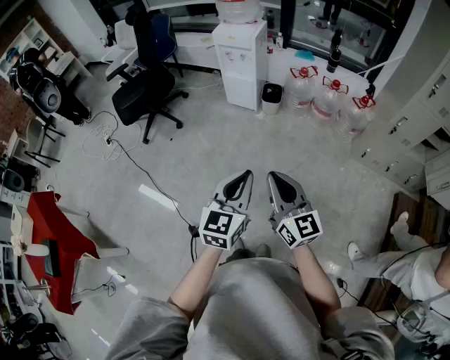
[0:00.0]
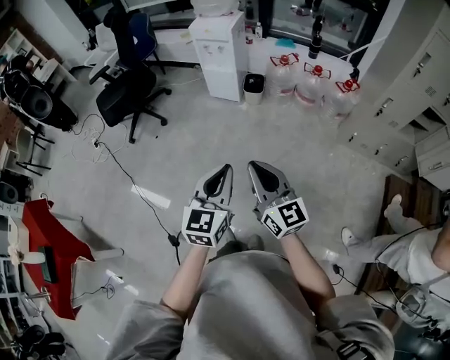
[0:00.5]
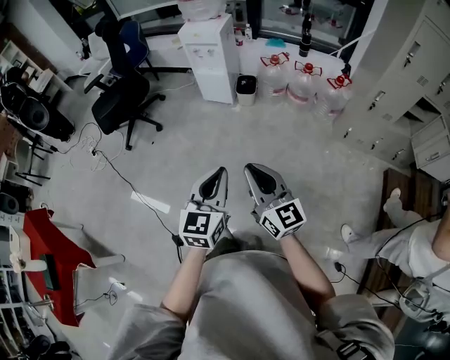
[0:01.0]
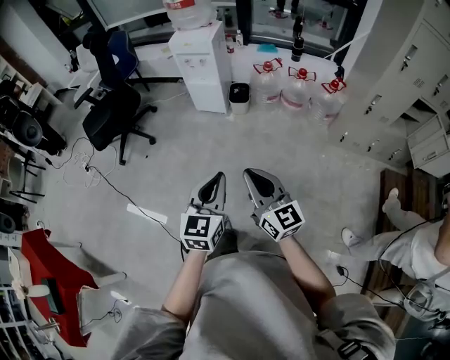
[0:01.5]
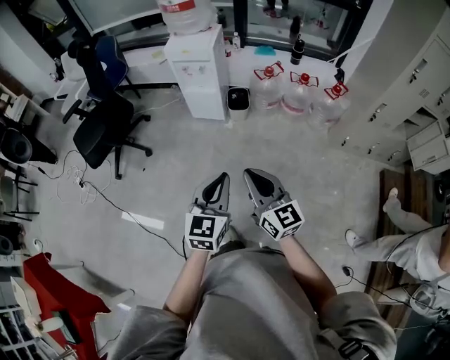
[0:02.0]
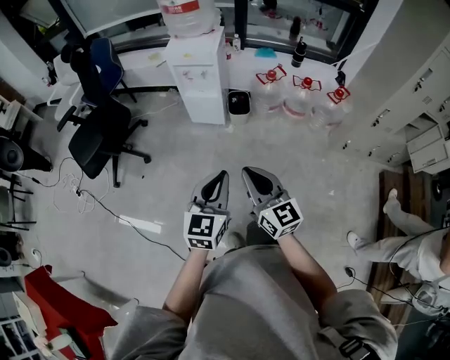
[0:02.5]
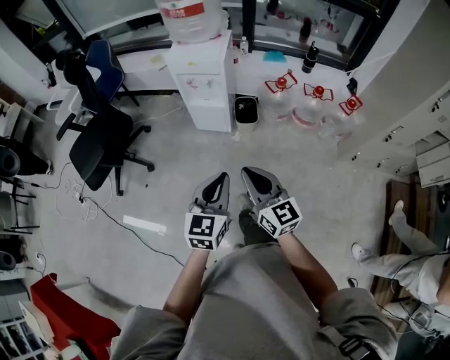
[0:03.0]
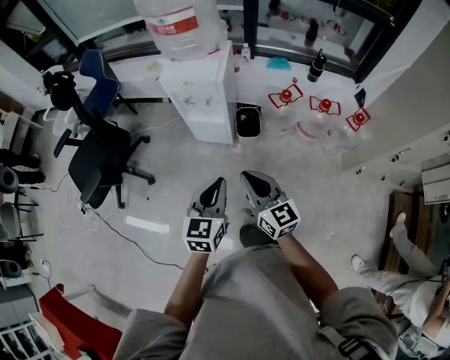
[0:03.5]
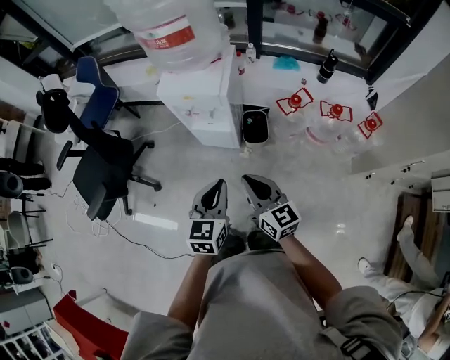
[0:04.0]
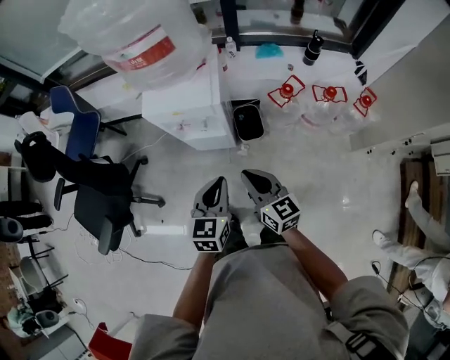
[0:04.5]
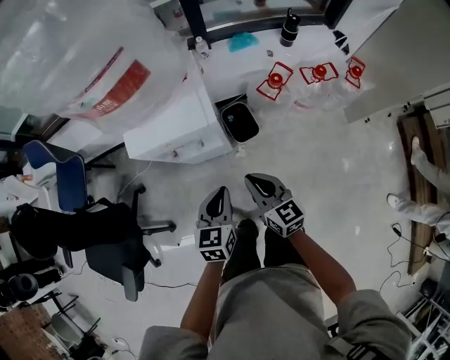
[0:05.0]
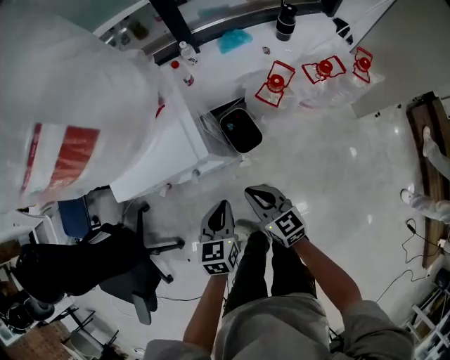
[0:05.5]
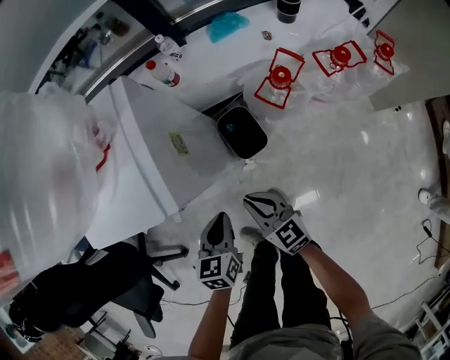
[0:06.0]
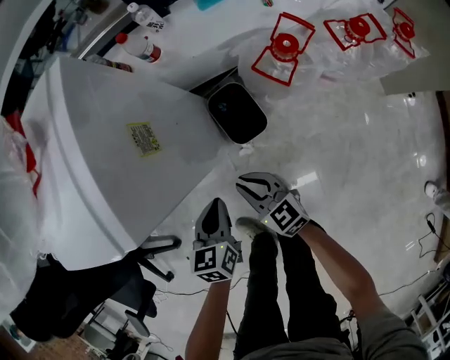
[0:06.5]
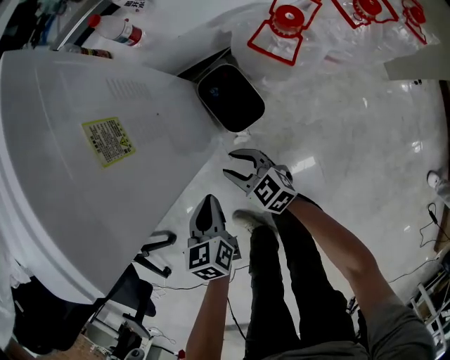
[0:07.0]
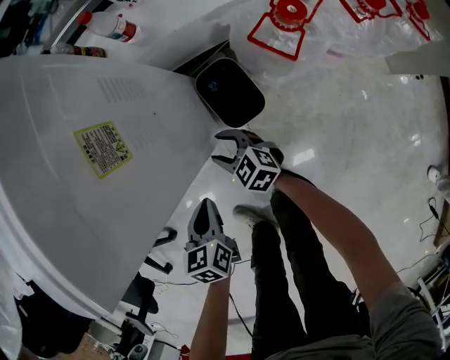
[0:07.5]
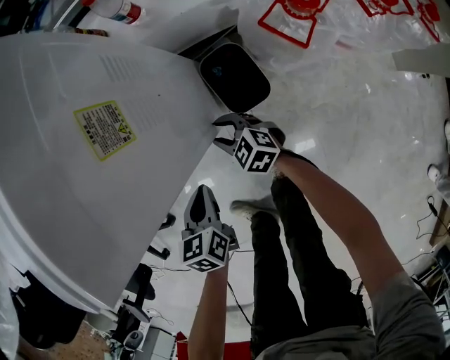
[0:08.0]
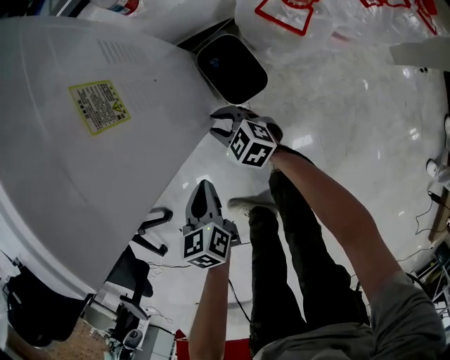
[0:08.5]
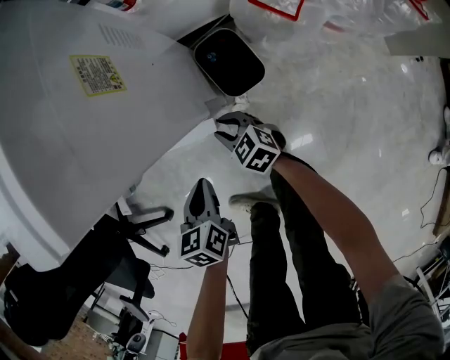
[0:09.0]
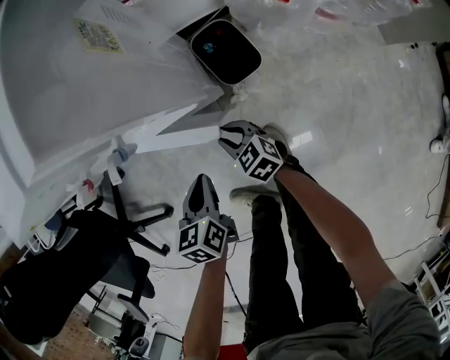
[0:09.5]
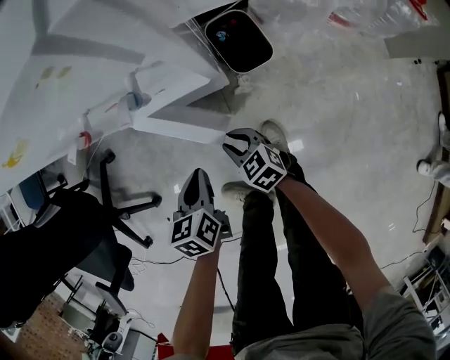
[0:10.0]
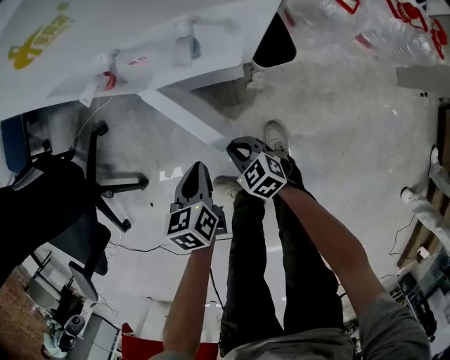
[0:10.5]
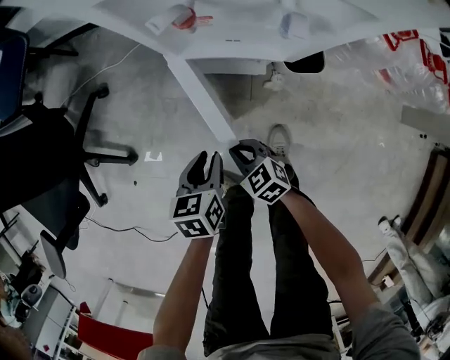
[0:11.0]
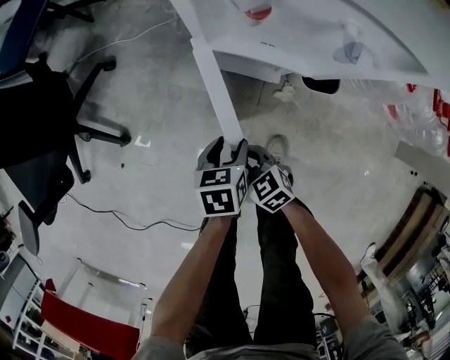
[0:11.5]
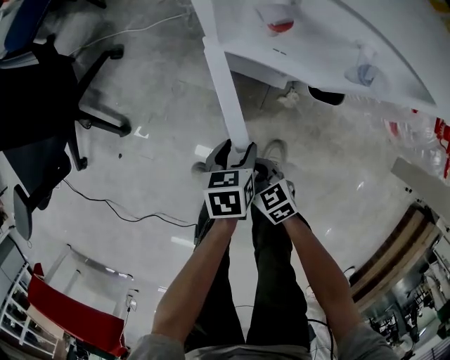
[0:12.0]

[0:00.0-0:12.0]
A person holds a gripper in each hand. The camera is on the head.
0:00.0 to 0:02.0: The grippers both shift forward by roughly 15 cm.
0:02.0 to 0:04.0: Both grippers are carried forward, approximately 40 cm.
0:04.0 to 0:06.0: Both grippers travel together downward and forward, about 40 cm. The left gripper rotates roughly 30 degrees.
0:06.0 to 0:08.0: The right gripper travels downward by roughly 25 cm, swivels about 30 degrees, and opens its fingers. The left gripper shifts roughly 15 cm downward.
0:08.0 to 0:10.0: The right gripper moves backward and to the left, about 20 cm; the left gripper travels to the left and backward by approximately 15 cm.
0:10.0 to 0:12.0: The right gripper shifts approximately 10 cm to the left and backward, swivels roughly 20 degrees, and closes its fingers. The left gripper heads downward, covering approximately 10 cm, changes its angle by roughly 20 degrees, and opens up.

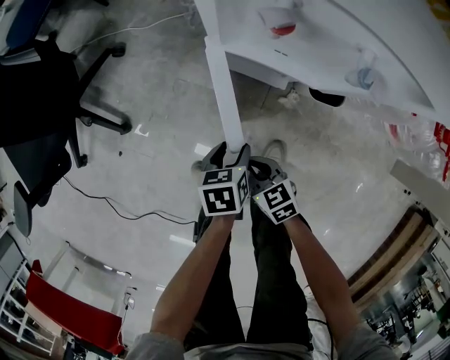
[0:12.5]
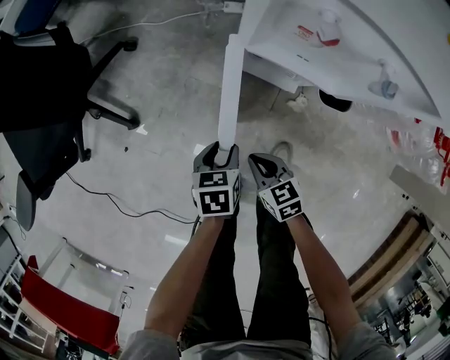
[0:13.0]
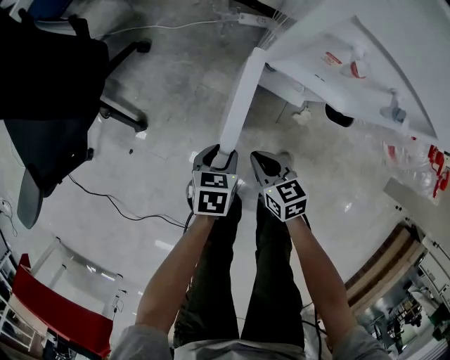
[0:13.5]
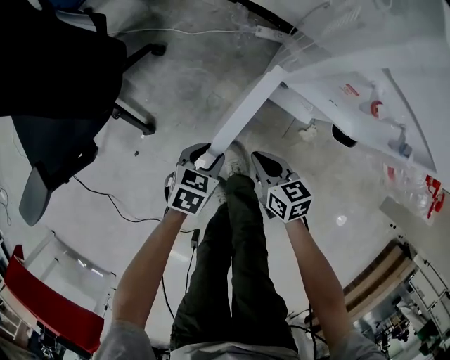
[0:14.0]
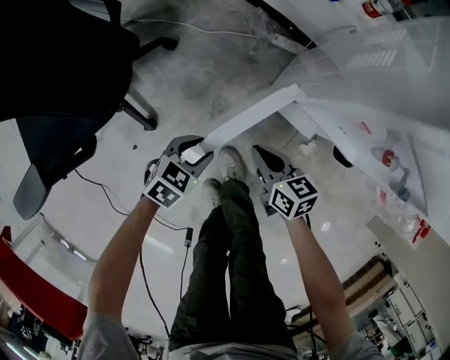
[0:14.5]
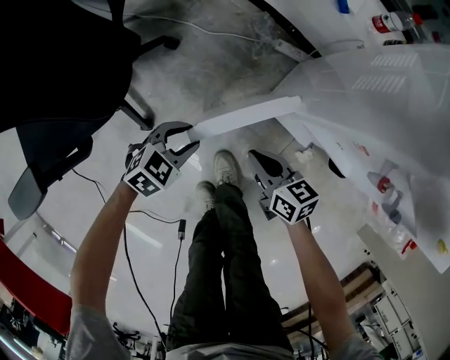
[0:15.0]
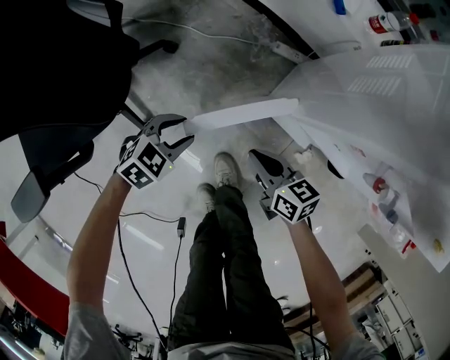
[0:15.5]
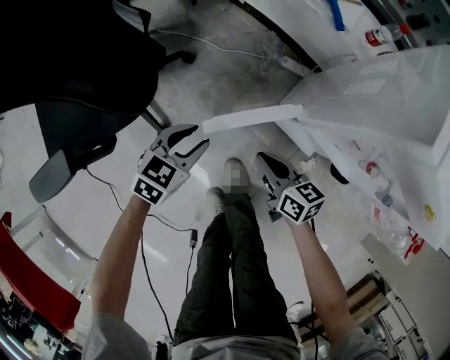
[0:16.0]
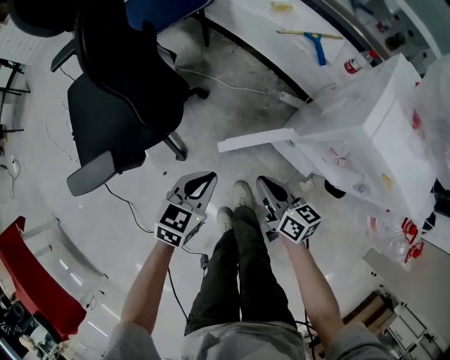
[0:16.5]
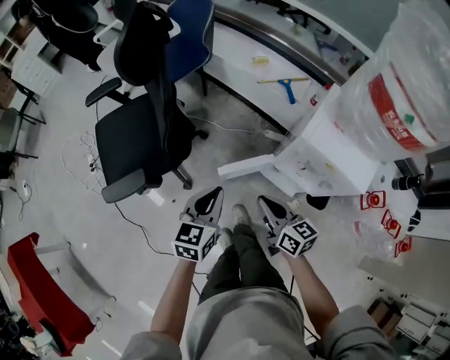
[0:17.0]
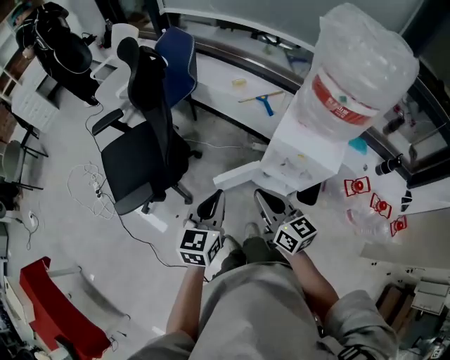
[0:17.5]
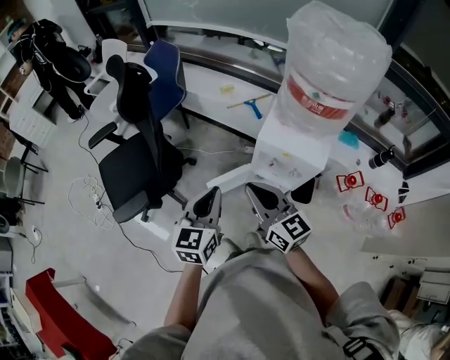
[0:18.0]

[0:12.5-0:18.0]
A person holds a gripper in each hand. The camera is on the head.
0:12.5 to 0:14.5: The left gripper goes about 20 cm to the left, and changes its angle by about 40 degrees. Meanwhile the right gripper travels forward and to the left by some 20 cm.
0:14.5 to 0:16.0: The right gripper heads upward, covering roughly 5 cm; the left gripper heads upward, forward and to the left, covering some 15 cm.
0:16.0 to 0:18.0: The two grippers go about 60 cm upward. The right gripper rotates about 40 degrees. The left gripper turns by roughly 40 degrees, and closes.

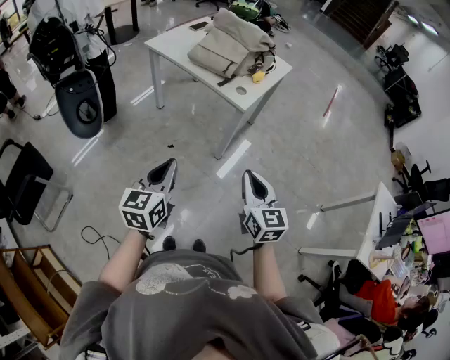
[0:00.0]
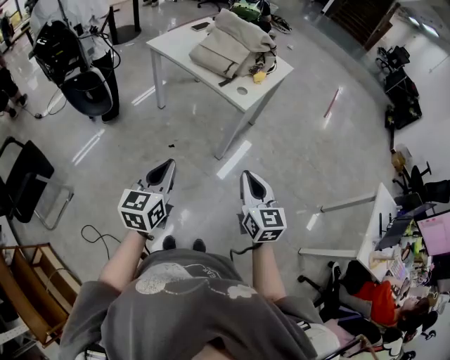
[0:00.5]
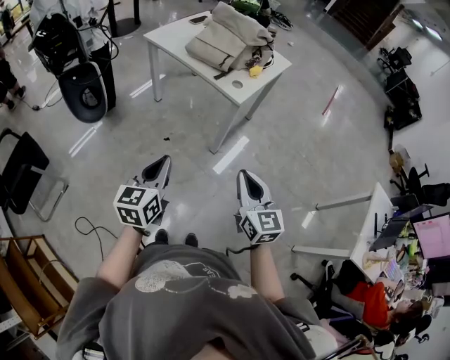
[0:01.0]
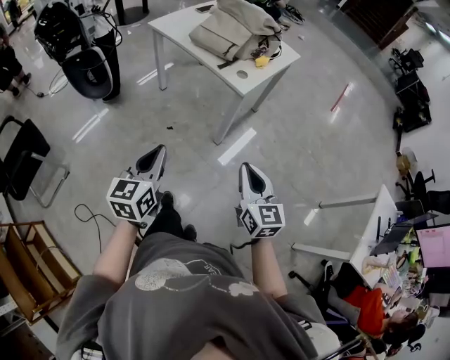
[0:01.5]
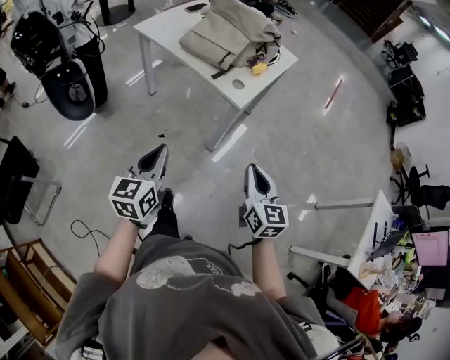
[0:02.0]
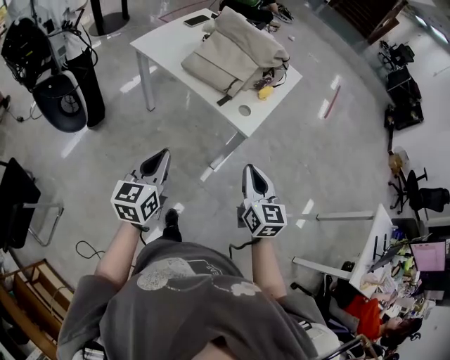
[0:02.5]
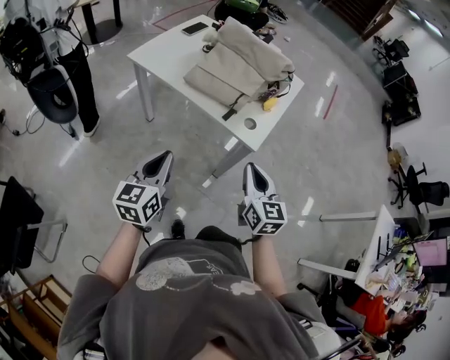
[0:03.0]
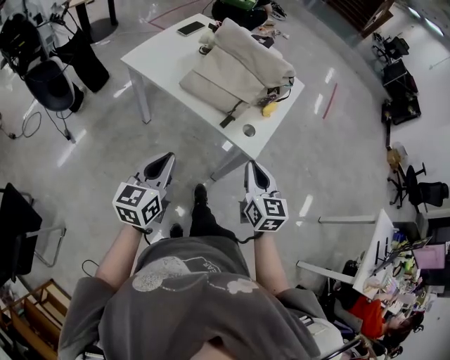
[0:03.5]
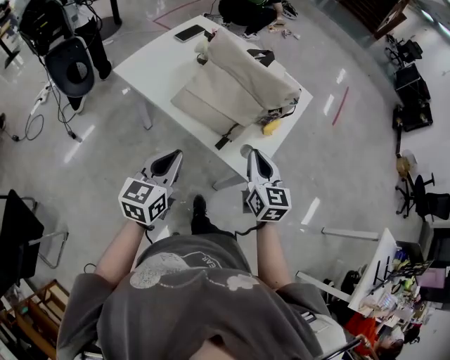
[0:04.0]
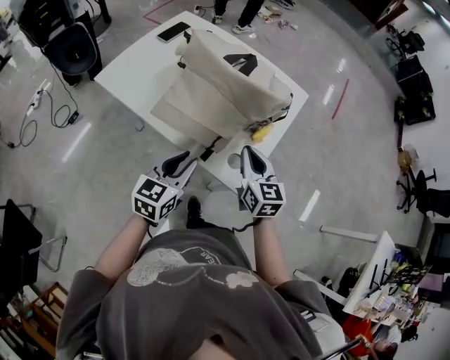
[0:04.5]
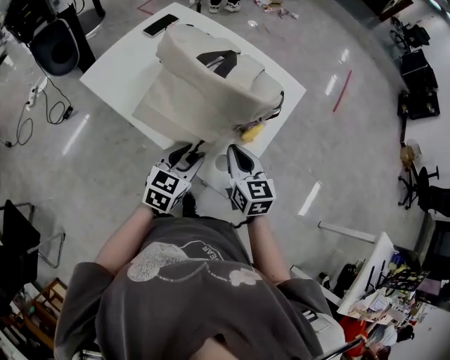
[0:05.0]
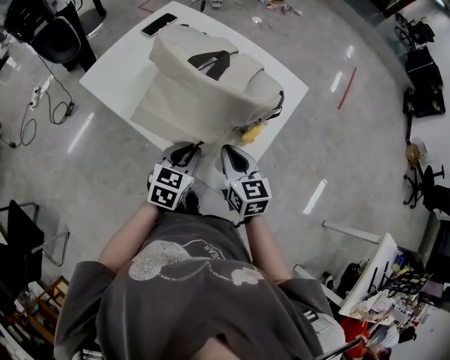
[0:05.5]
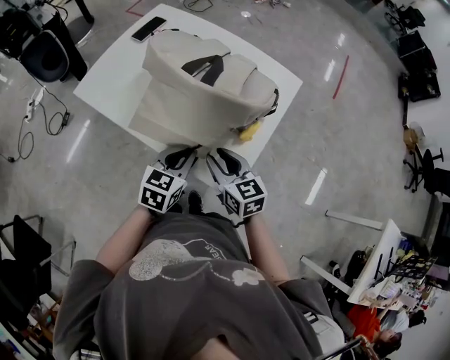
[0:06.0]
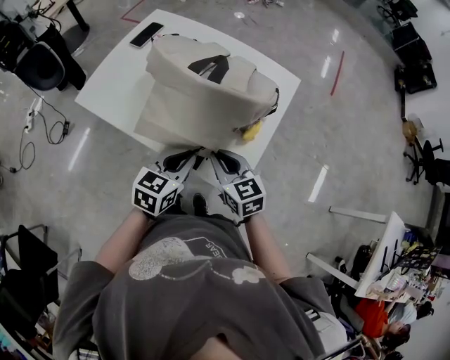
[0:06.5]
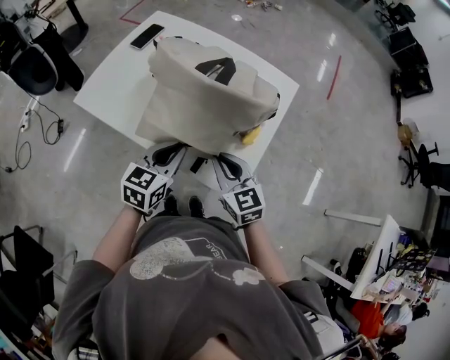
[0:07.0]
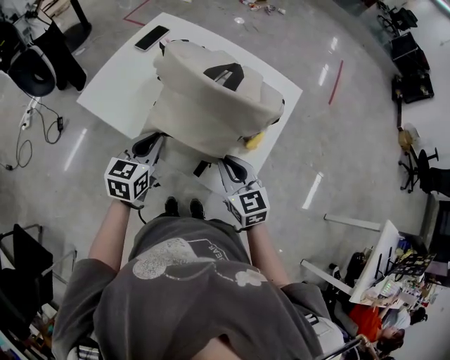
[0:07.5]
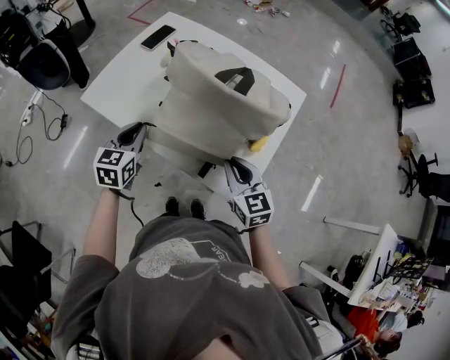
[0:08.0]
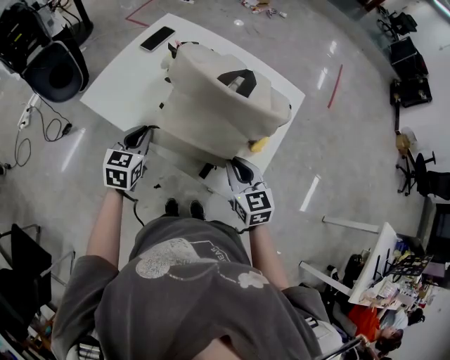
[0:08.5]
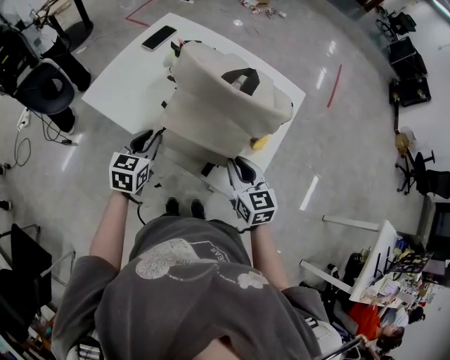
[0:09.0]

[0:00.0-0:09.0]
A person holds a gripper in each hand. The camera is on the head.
0:00.0 to 0:02.0: Both grippers move forward, roughly 10 cm.
0:02.0 to 0:04.5: The pair of grippers is taken forward, approximately 50 cm. The left gripper turns by about 20 degrees, and opens up.
0:04.5 to 0:07.0: The right gripper ends up about 5 cm from where it was, and opens, then closes once more. The left gripper heads forward, covering some 10 cm.
0:07.0 to 0:09.0: The left gripper heads to the left and forward, covering approximately 15 cm.
